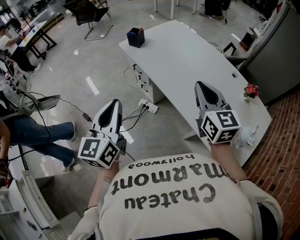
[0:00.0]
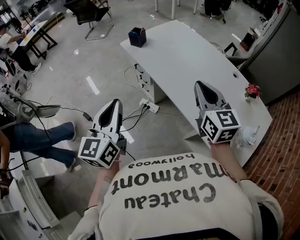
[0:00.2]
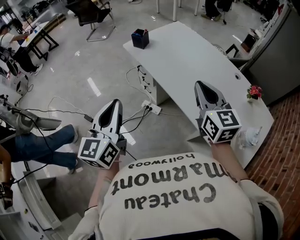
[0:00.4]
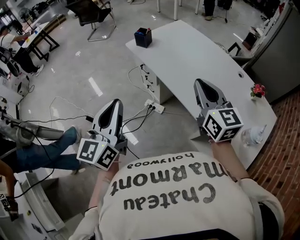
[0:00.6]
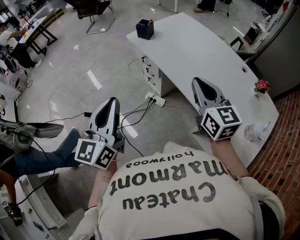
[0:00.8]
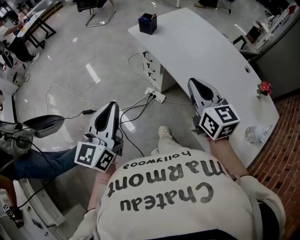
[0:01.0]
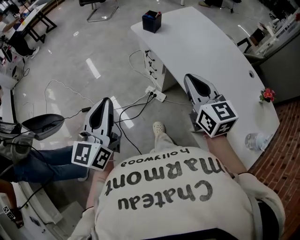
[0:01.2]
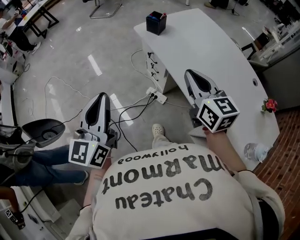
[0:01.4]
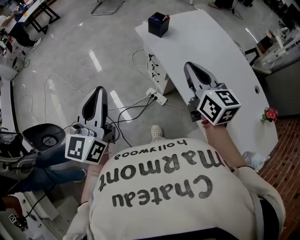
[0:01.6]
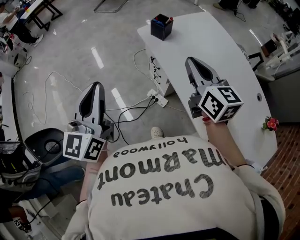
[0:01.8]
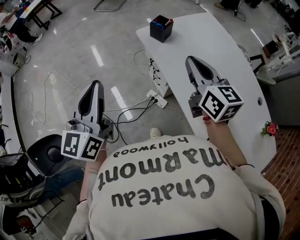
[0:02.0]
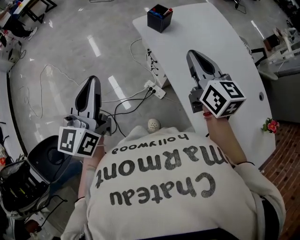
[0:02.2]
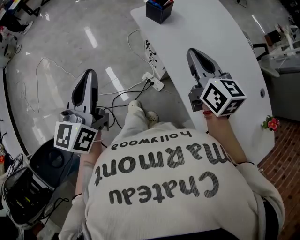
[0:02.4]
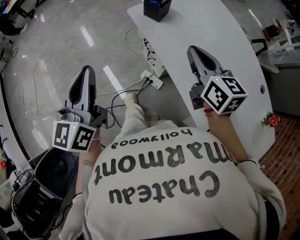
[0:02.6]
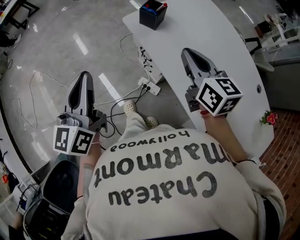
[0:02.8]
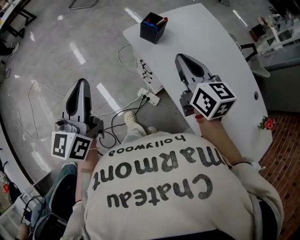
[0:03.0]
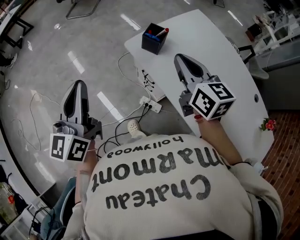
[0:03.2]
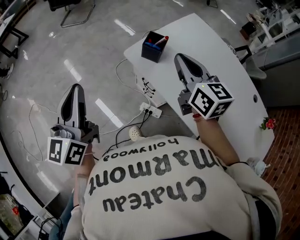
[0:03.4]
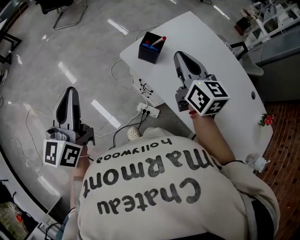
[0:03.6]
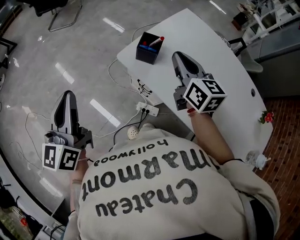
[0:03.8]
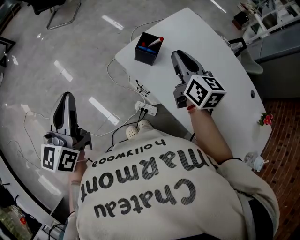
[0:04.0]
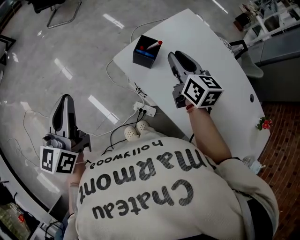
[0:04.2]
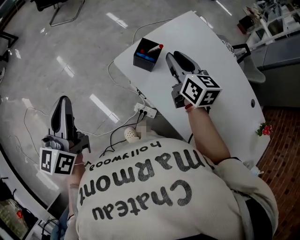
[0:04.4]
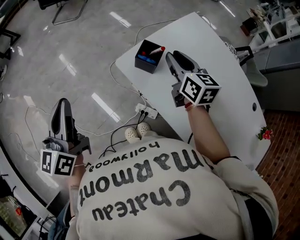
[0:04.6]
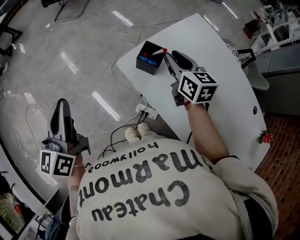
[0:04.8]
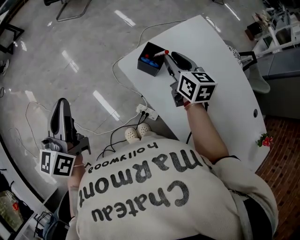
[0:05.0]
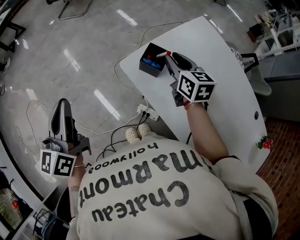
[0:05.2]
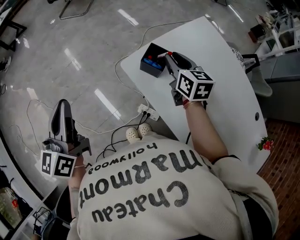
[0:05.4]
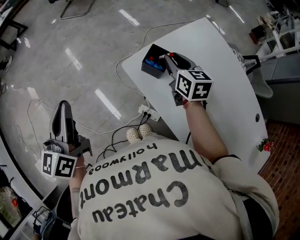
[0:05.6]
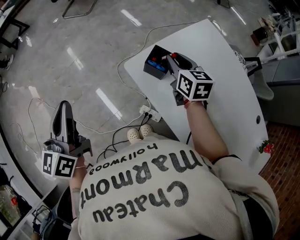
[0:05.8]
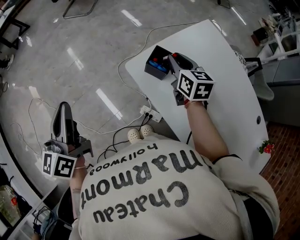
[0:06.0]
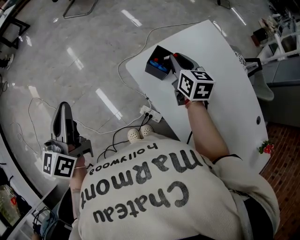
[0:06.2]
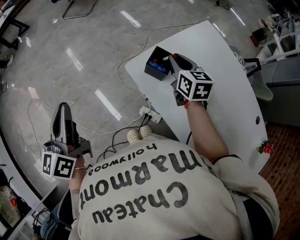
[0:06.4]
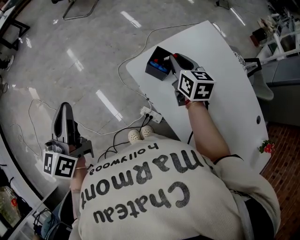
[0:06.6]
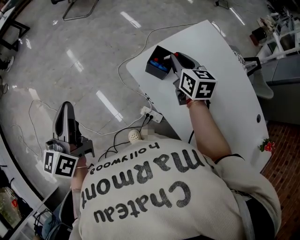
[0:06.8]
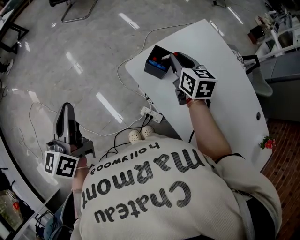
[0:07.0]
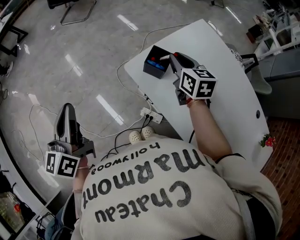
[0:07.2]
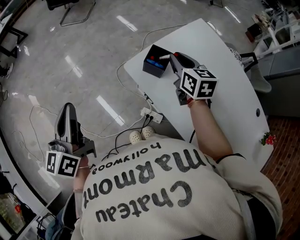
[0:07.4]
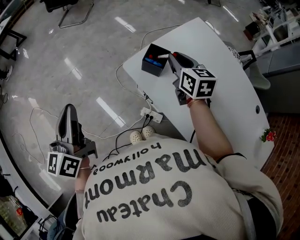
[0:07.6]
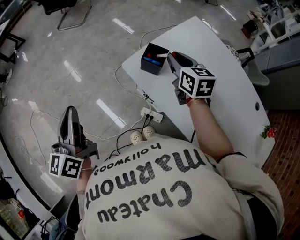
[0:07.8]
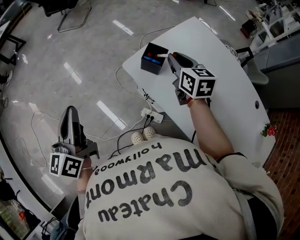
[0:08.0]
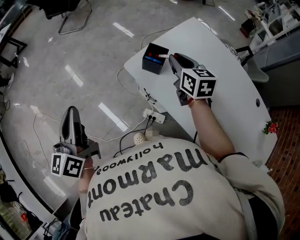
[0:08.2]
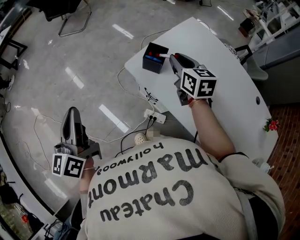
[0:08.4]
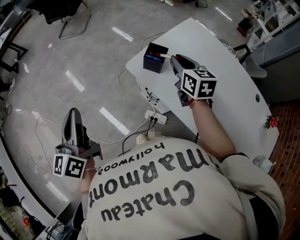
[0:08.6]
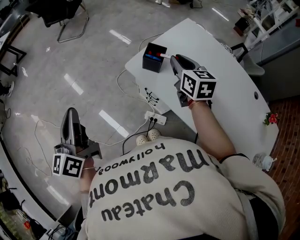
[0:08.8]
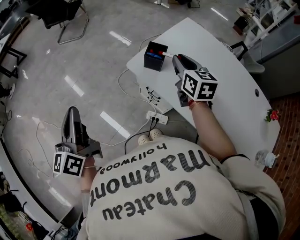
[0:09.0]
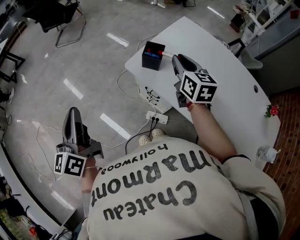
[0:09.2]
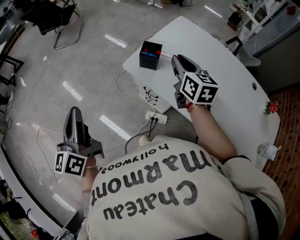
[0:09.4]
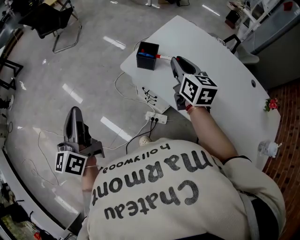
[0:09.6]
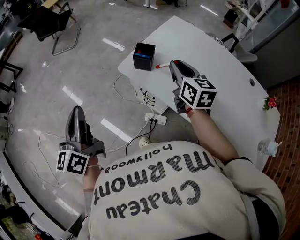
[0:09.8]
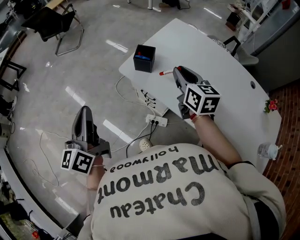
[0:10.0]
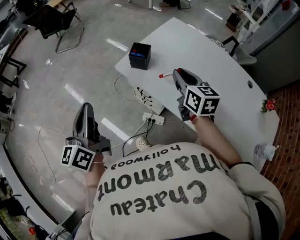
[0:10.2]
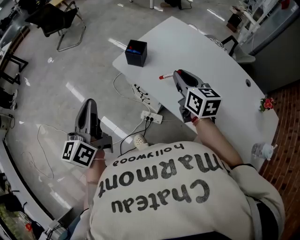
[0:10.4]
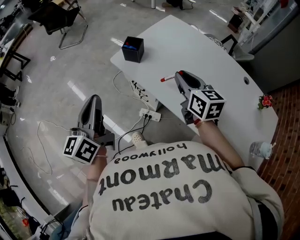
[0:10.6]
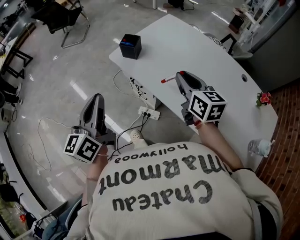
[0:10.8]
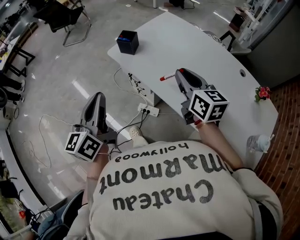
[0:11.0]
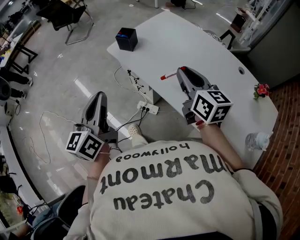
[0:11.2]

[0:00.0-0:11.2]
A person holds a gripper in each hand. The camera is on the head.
0:00.0 to 0:01.6: The two grippers go some 20 cm forward and to the left.
0:01.6 to 0:03.2: Both grippers travel together forward, some 25 cm.
0:03.2 to 0:04.8: The right gripper goes about 20 cm forward and downward, and opens; the left gripper is displaced forward by roughly 10 cm.
0:04.8 to 0:06.4: The right gripper changes place by approximately 5 cm.
0:06.4 to 0:08.0: The right gripper goes approximately 5 cm backward.
0:08.0 to 0:09.6: The right gripper moves backward, some 10 cm.
0:09.6 to 0:11.2: The left gripper goes roughly 30 cm to the right and backward. Meanwhile the right gripper goes about 30 cm backward and to the right.

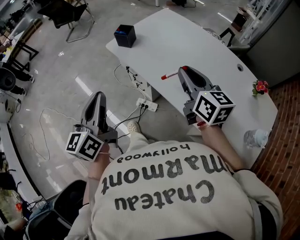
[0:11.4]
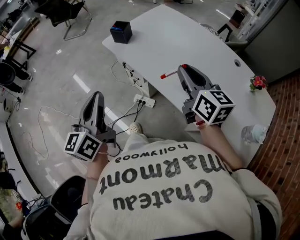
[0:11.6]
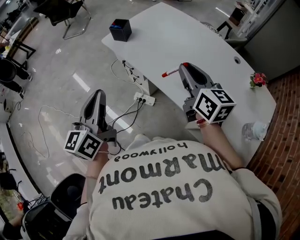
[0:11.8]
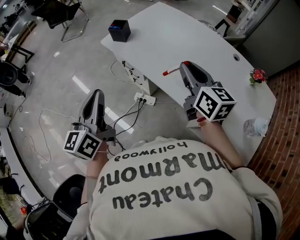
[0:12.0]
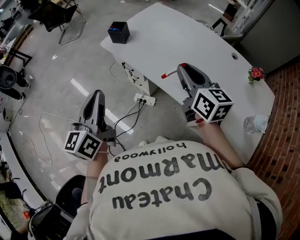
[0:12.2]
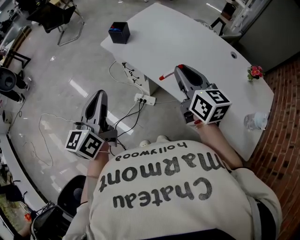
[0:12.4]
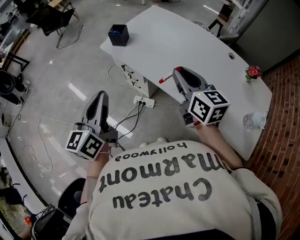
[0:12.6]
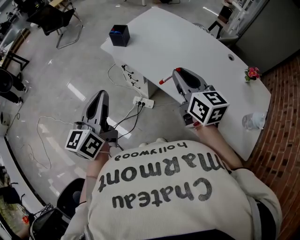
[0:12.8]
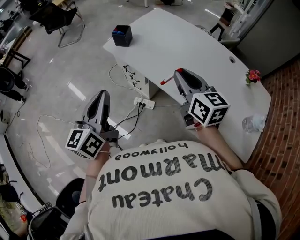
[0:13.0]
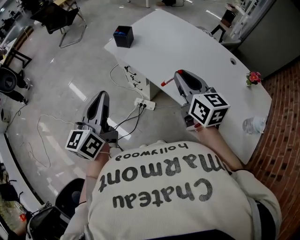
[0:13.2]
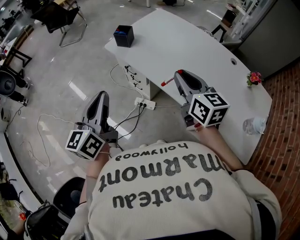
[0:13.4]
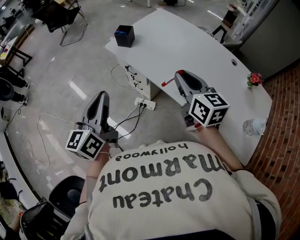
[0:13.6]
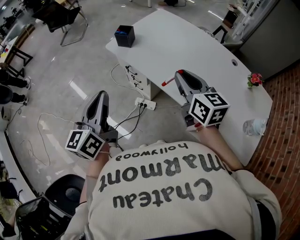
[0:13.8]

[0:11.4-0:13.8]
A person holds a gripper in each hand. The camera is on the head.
0:11.4 to 0:13.8: The grippers make only small movements.

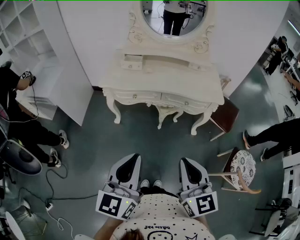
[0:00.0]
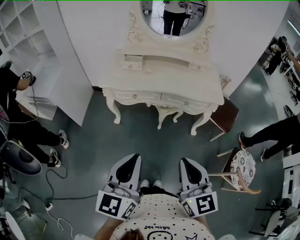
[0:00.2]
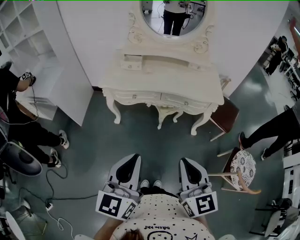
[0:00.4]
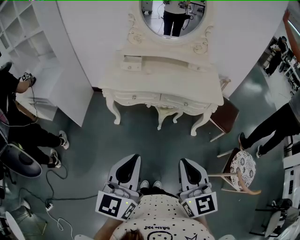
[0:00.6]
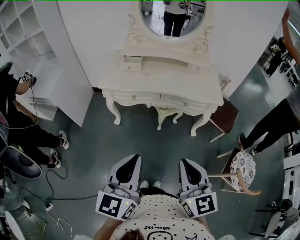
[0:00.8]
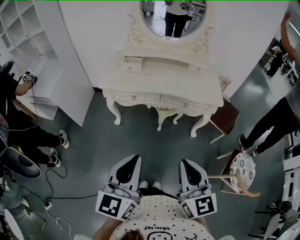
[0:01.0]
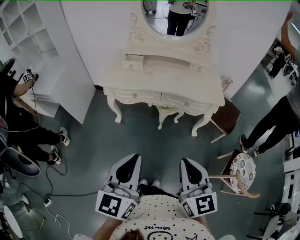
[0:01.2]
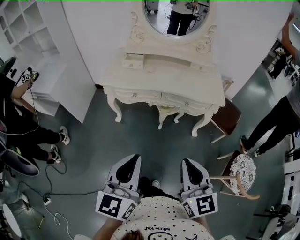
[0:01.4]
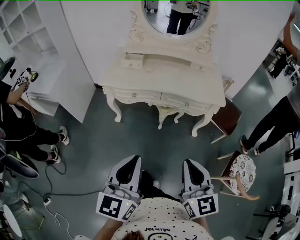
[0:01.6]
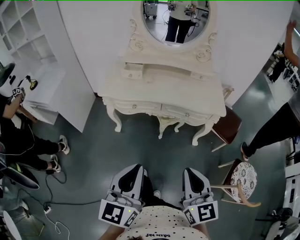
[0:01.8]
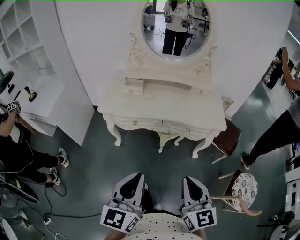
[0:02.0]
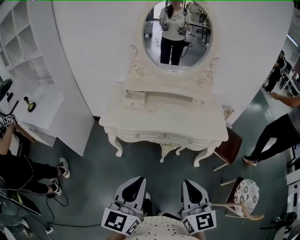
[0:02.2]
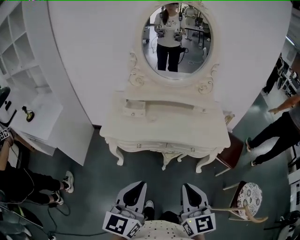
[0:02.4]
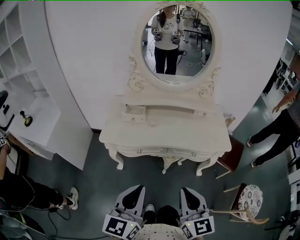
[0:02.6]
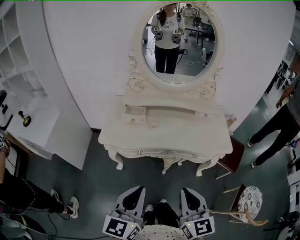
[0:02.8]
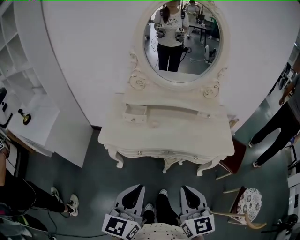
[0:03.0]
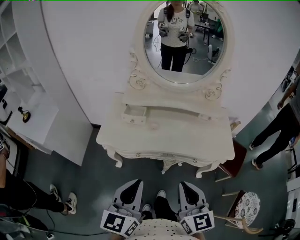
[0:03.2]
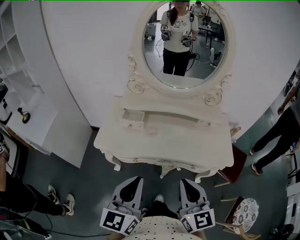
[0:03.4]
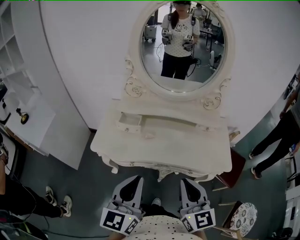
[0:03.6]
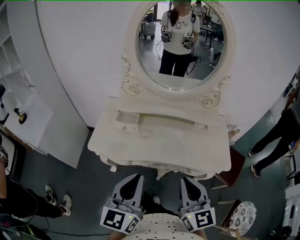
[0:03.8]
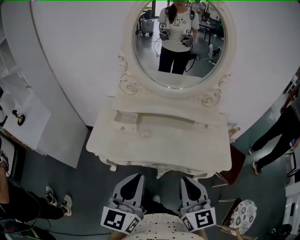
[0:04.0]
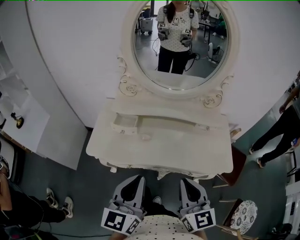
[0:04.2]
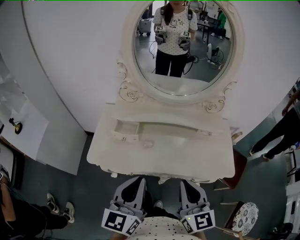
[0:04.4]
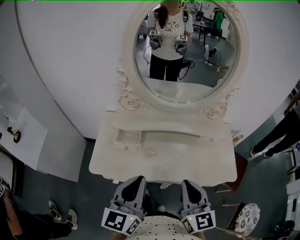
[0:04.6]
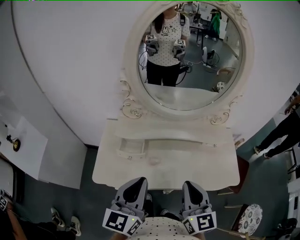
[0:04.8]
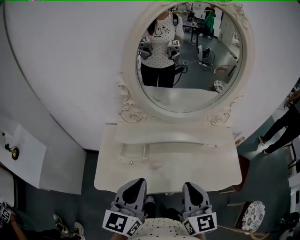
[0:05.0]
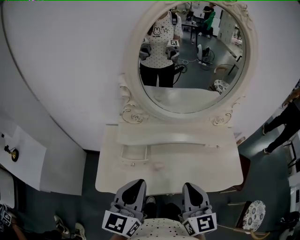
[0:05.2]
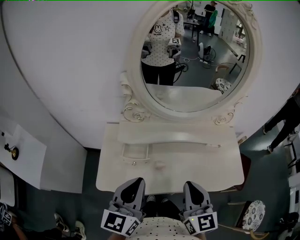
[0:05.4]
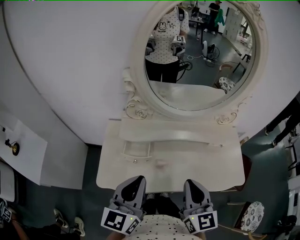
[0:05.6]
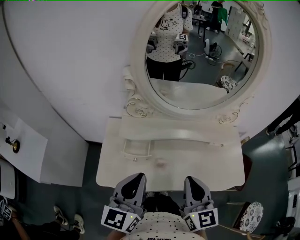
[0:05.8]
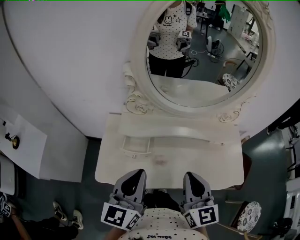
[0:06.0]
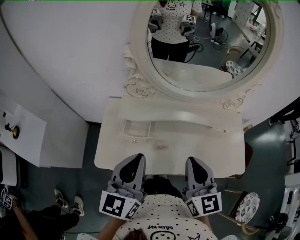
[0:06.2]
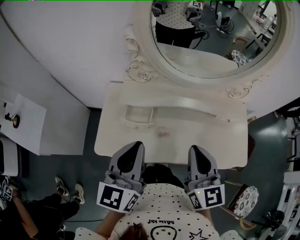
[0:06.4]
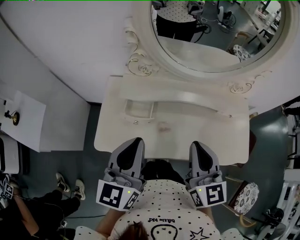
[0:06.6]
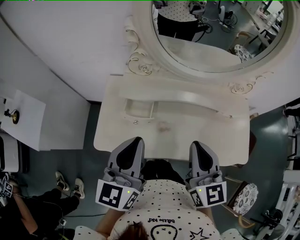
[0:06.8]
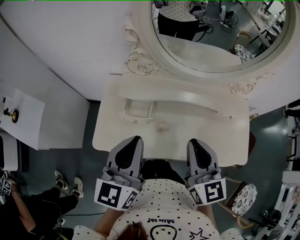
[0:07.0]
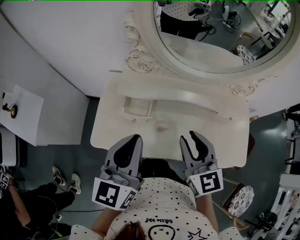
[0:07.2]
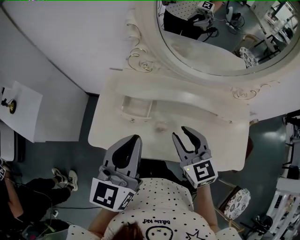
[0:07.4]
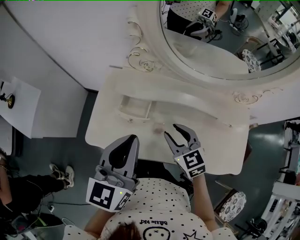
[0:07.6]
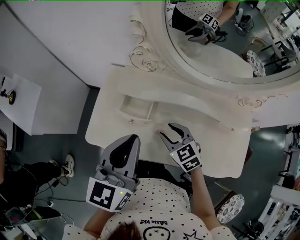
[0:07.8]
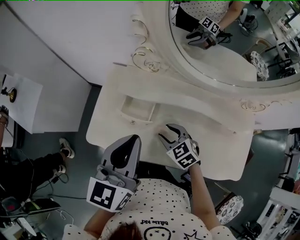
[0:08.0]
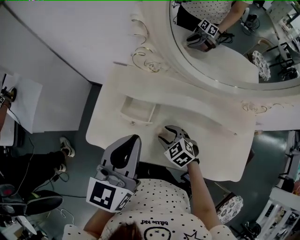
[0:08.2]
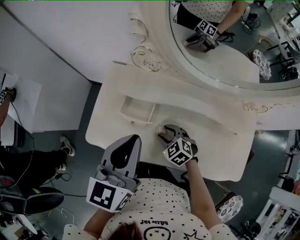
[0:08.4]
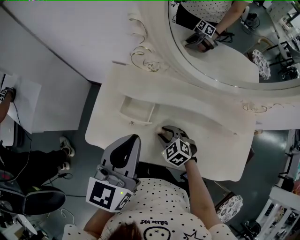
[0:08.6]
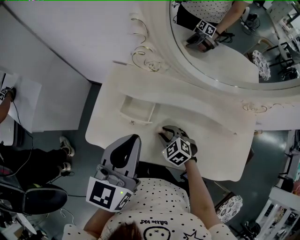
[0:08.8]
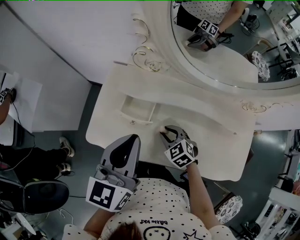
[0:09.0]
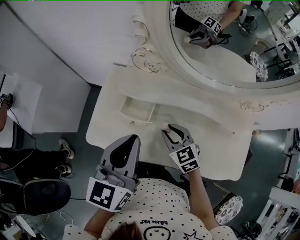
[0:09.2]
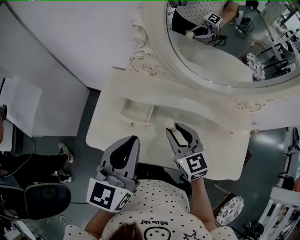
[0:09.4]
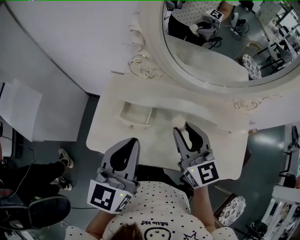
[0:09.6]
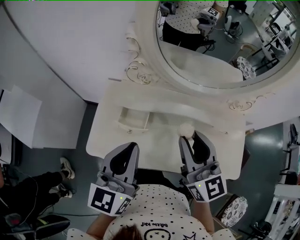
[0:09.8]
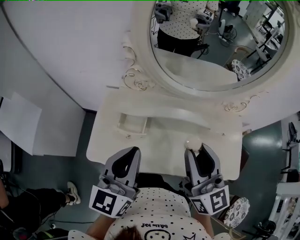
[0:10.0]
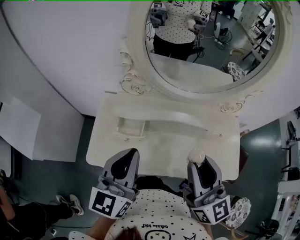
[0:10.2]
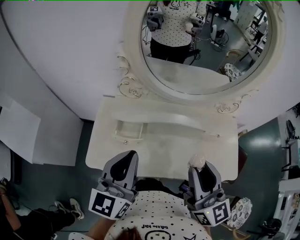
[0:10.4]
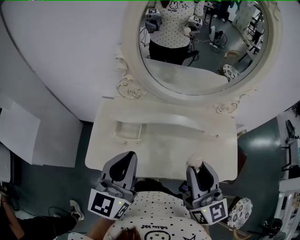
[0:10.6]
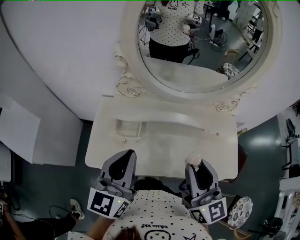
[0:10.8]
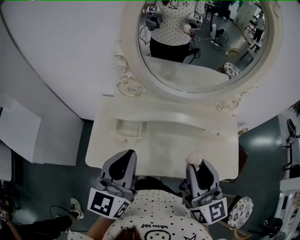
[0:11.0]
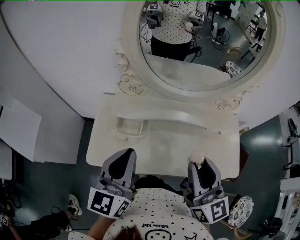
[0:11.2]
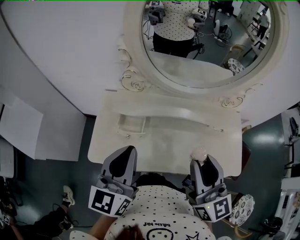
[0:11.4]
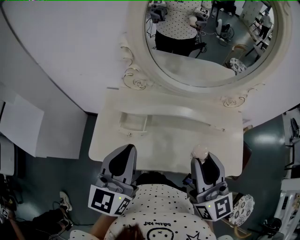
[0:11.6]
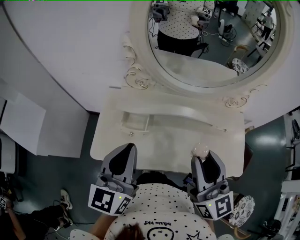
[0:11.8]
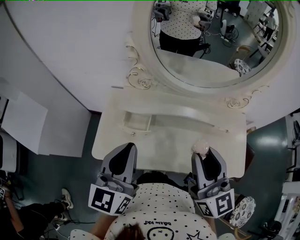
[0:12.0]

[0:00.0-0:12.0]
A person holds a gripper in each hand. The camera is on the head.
0:00.0 to 0:01.6: The right gripper shifts by about 5 cm.
0:01.6 to 0:03.0: The right gripper is displaced forward and to the left by approximately 25 cm. Meanwhile the left gripper moves forward, roughly 20 cm.
0:03.0 to 0:04.4: The grippers both shift forward by approximately 20 cm.
0:04.4 to 0:06.0: Both grippers travel together forward and to the left, approximately 15 cm.
0:06.0 to 0:07.6: The right gripper goes some 20 cm downward and forward, swivels approximately 40 degrees, and opens up.
0:07.6 to 0:09.0: The right gripper goes some 10 cm downward, and swivels roughly 20 degrees.
0:09.0 to 0:10.4: The left gripper shifts roughly 5 cm upward. Meanwhile the right gripper heads upward, covering some 35 cm, and tilts its fingers about 50 degrees upward.
0:10.4 to 0:12.0: There are only small adjustments of the grippers.
